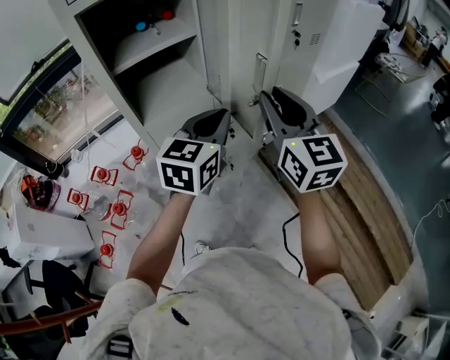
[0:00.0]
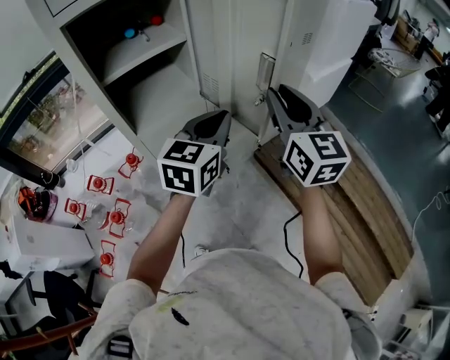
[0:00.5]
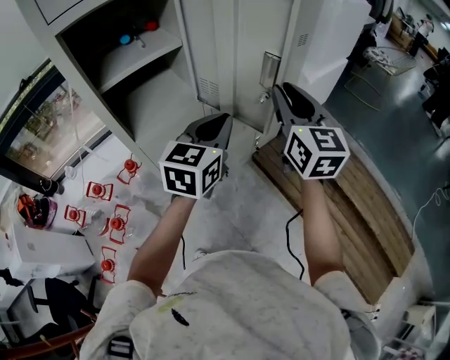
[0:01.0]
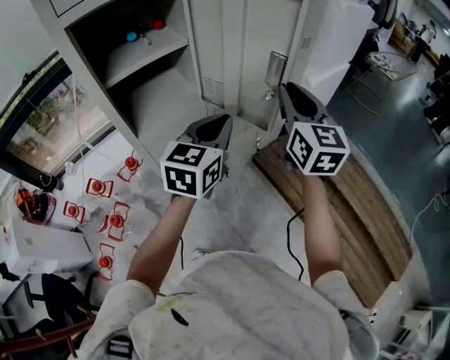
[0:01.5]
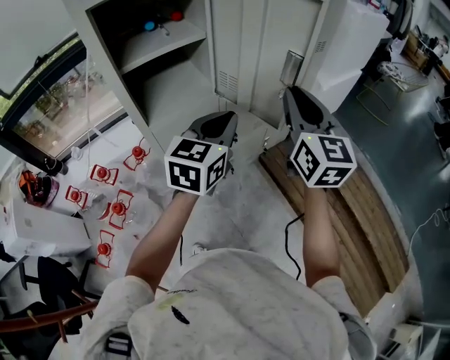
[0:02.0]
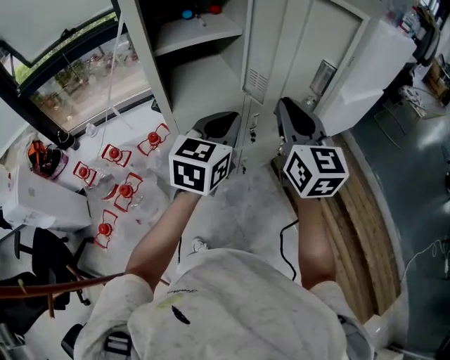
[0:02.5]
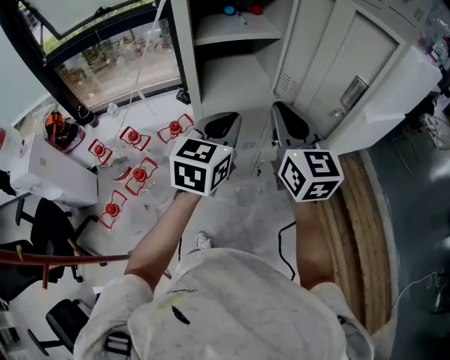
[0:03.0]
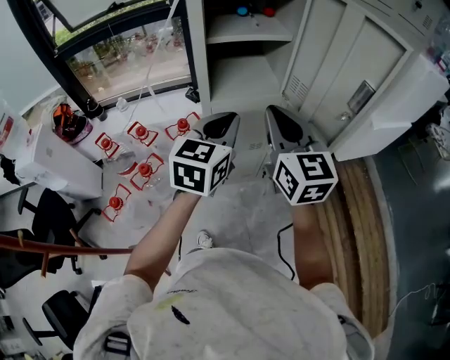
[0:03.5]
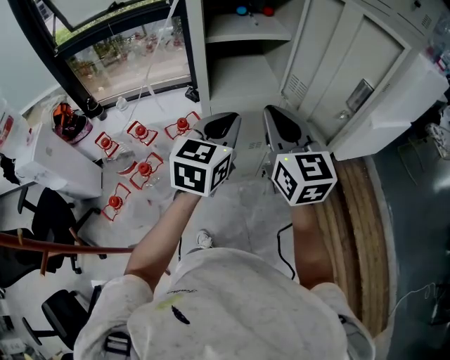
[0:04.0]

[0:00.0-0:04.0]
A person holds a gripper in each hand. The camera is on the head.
0:02.0 to 0:04.0: The two grippers go roughly 15 cm to the left. The left gripper changes its angle by some 20 degrees. The right gripper rotates roughly 30 degrees.

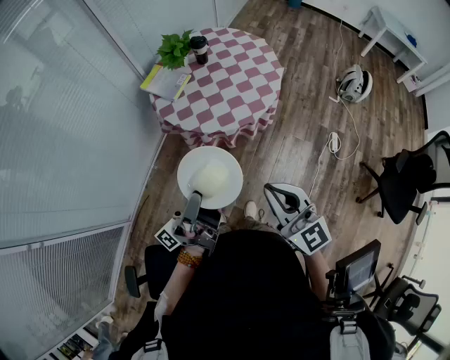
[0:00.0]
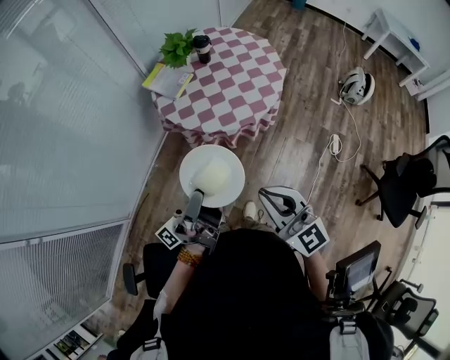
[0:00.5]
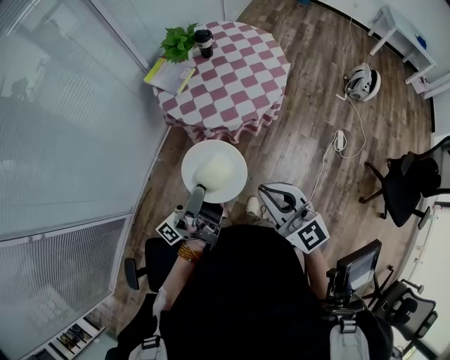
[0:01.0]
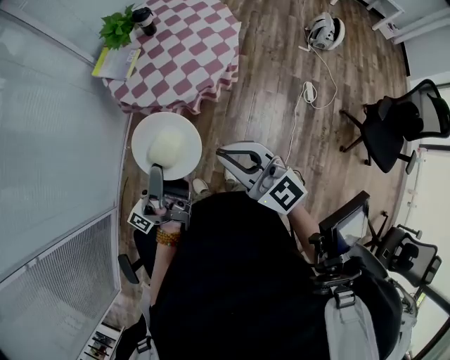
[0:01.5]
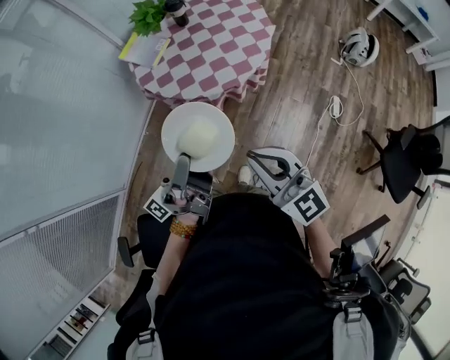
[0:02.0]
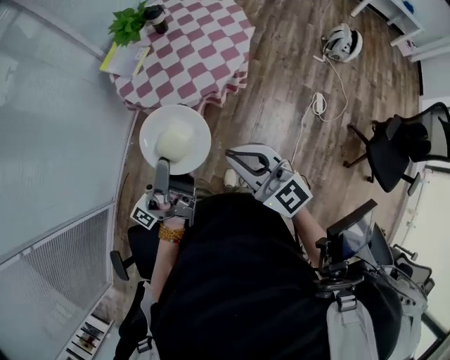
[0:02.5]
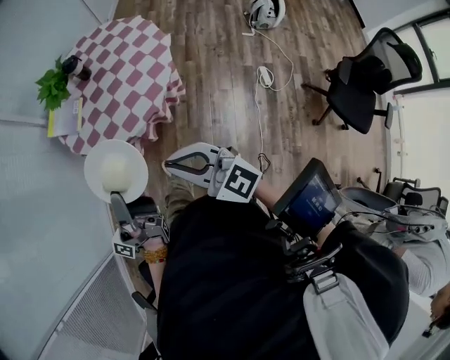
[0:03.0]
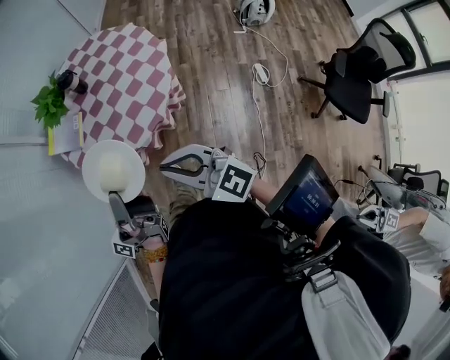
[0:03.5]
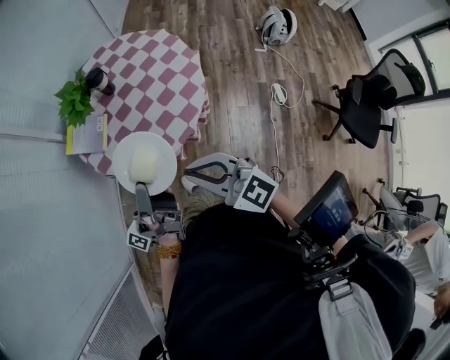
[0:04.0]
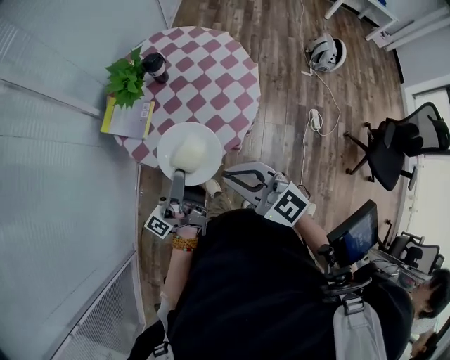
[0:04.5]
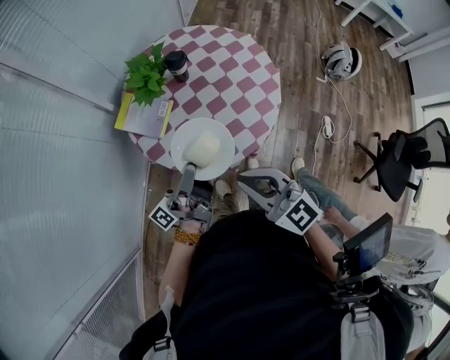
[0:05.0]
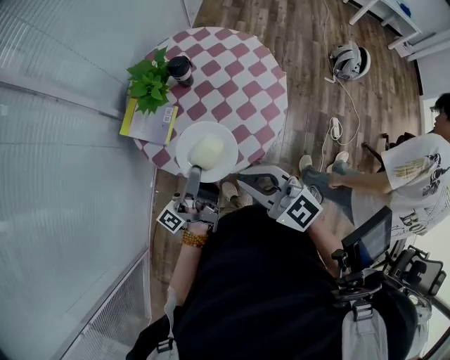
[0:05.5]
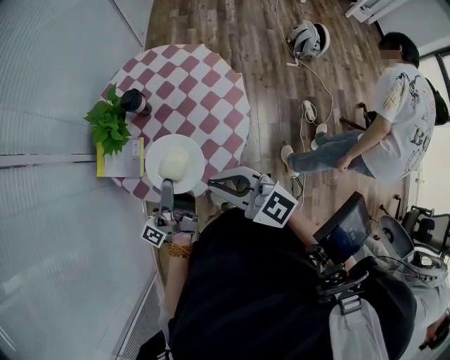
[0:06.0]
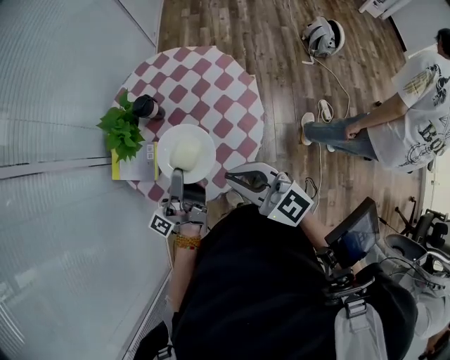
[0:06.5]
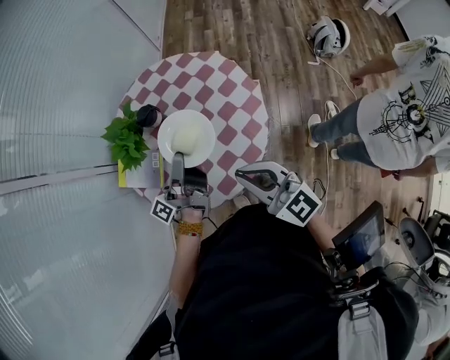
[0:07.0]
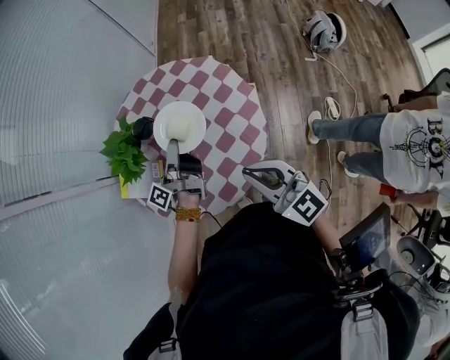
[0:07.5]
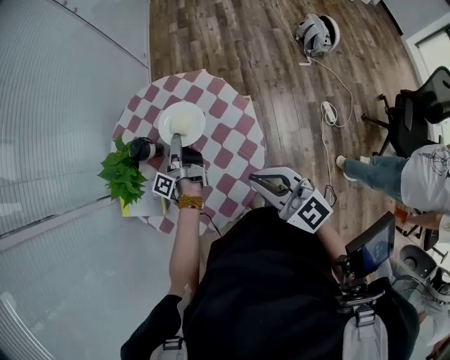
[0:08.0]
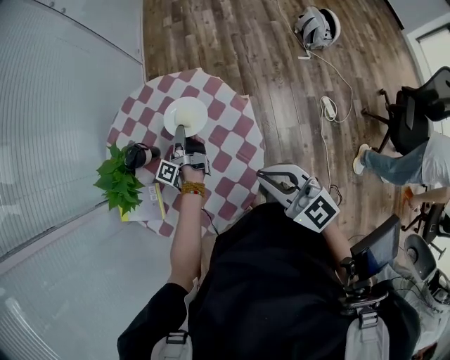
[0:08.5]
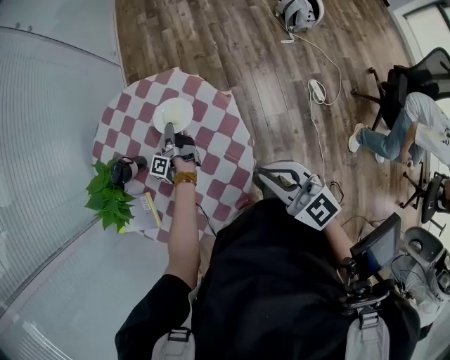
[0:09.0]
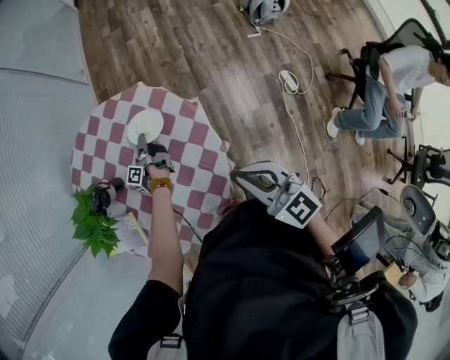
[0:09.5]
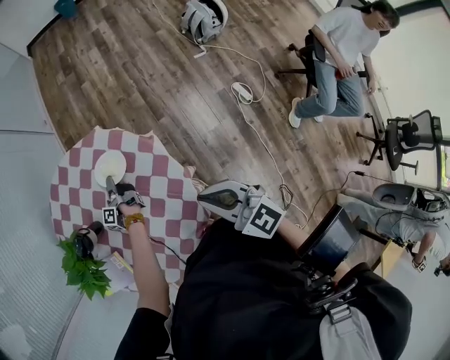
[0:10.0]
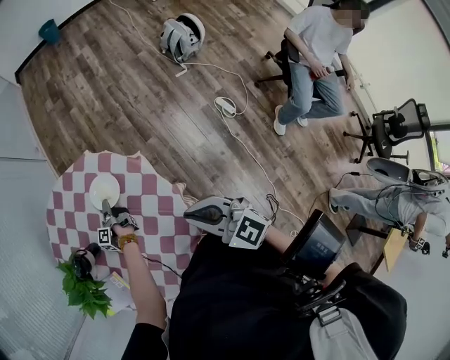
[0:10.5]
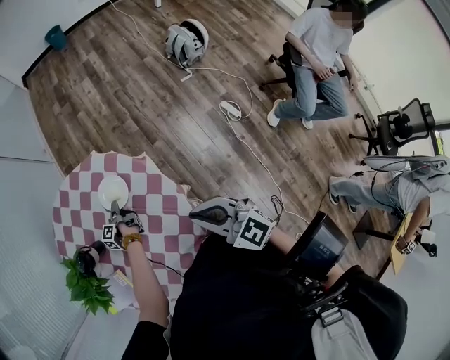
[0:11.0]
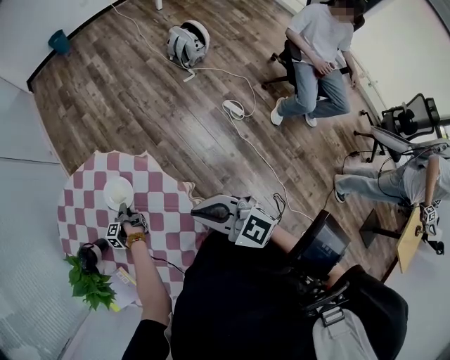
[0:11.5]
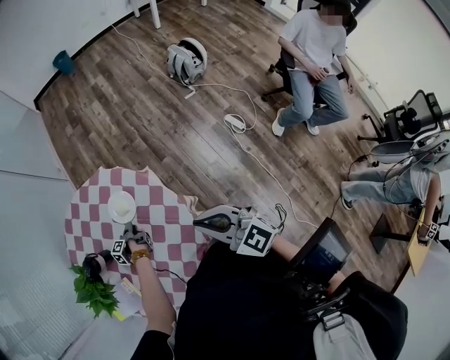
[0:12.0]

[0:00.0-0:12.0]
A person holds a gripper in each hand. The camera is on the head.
0:00.0 to 0:02.0: The right gripper changes place by some 5 cm.
0:02.0 to 0:04.0: The right gripper ends up about 20 cm from where it was.
0:04.0 to 0:06.0: The right gripper shifts by some 15 cm.
0:06.0 to 0:08.0: The right gripper changes place by approximately 20 cm.
0:08.0 to 0:10.0: The right gripper moves roughly 15 cm.
0:10.0 to 0:12.0: The right gripper changes place by approximately 10 cm.

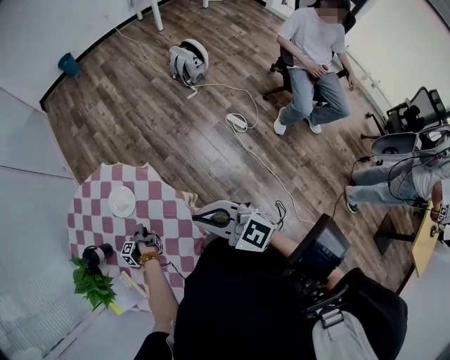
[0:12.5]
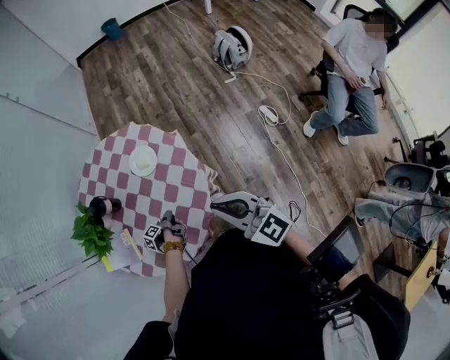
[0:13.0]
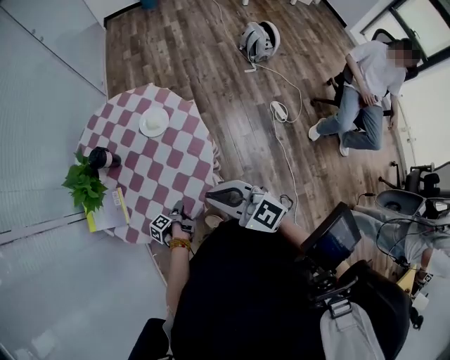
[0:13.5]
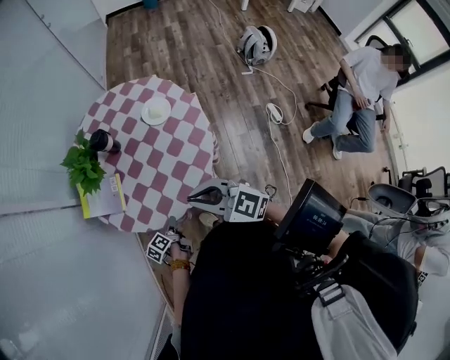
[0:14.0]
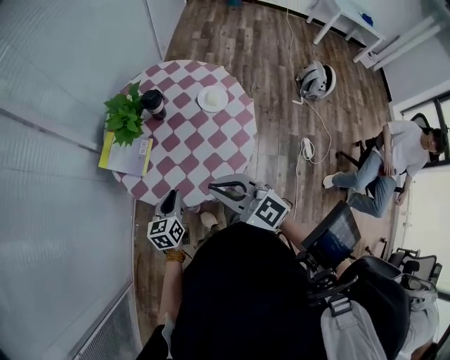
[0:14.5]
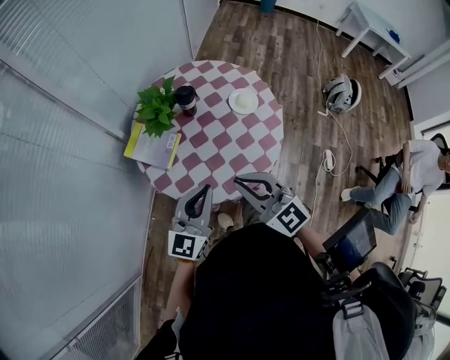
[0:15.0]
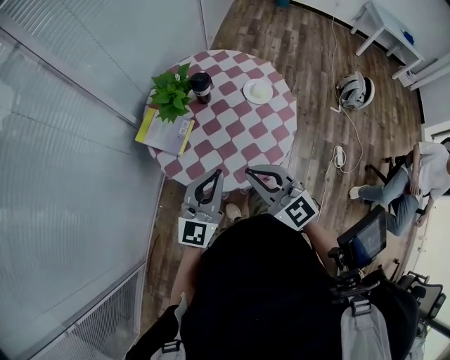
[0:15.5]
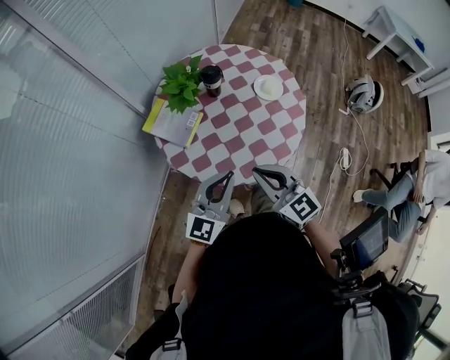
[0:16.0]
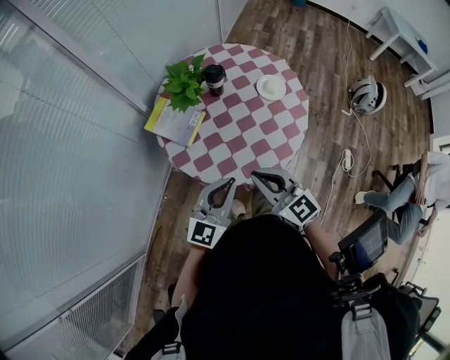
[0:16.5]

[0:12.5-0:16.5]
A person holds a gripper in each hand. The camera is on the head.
0:12.5 to 0:14.5: The right gripper moves approximately 30 cm, and rotates roughly 40 degrees.

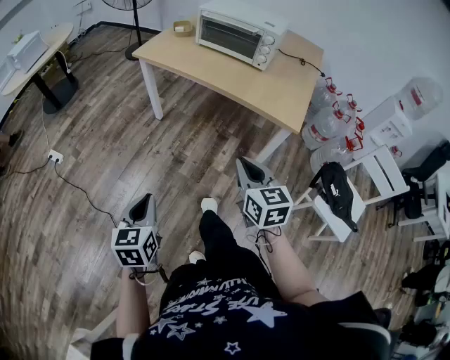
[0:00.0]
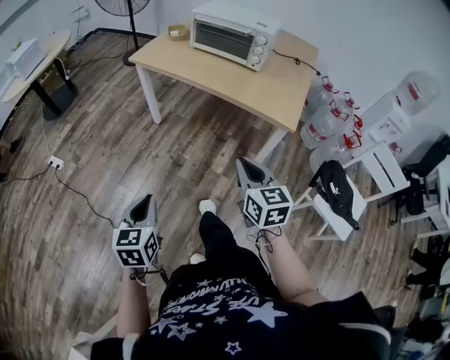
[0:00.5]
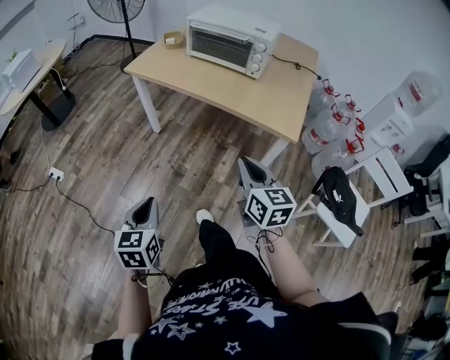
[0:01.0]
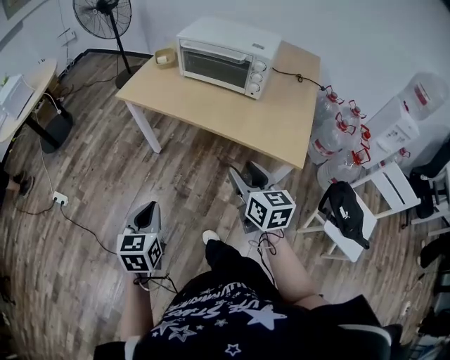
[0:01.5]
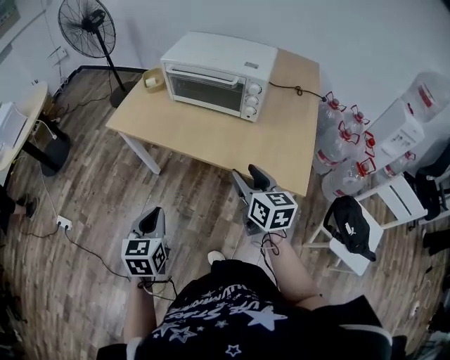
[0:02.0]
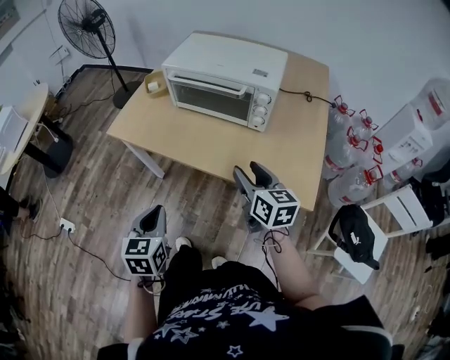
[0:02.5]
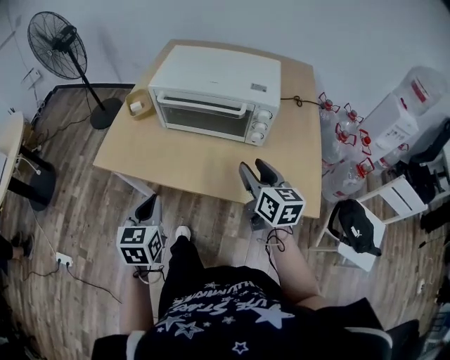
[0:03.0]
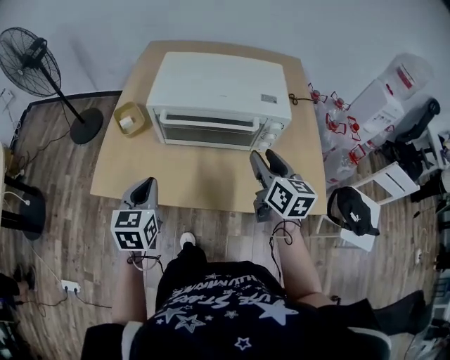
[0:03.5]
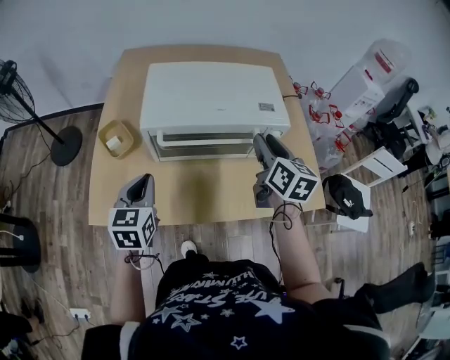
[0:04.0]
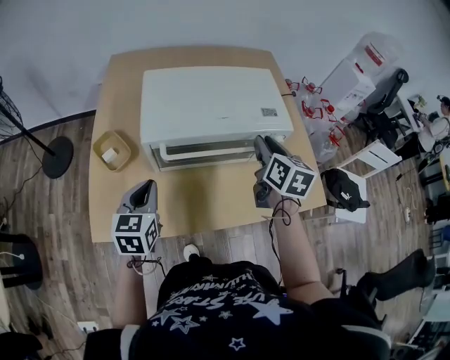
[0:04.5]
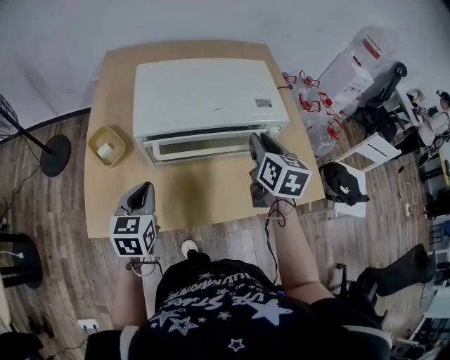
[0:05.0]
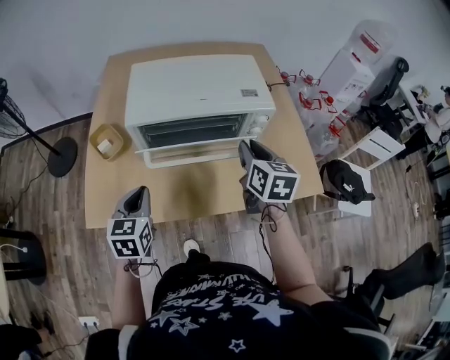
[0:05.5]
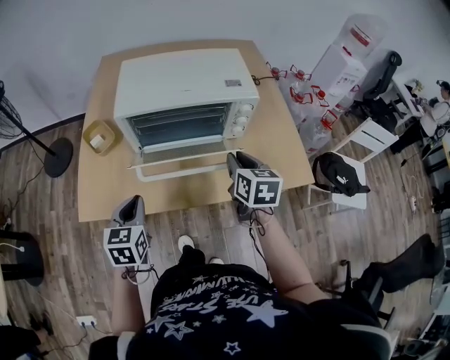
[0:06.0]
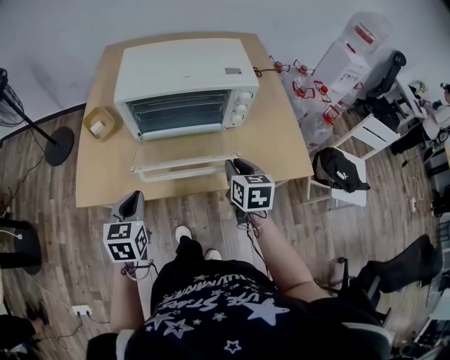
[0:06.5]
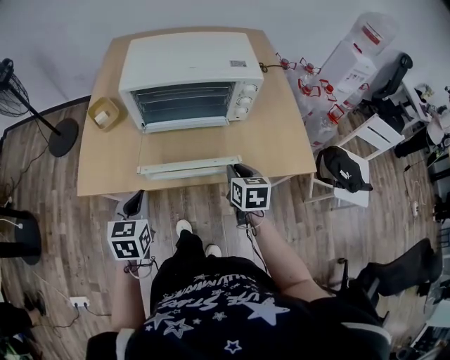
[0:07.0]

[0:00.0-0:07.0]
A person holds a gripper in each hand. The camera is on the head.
0:00.0 to 0:02.0: The grippers both shift forward by some 30 cm. The right gripper opens its fingers.
0:02.0 to 0:03.5: The left gripper goes about 35 cm forward, while the right gripper is displaced forward by some 25 cm, and turns by approximately 20 degrees.
0:03.5 to 0:05.0: The two grippers go roughly 10 cm forward. The right gripper rotates approximately 20 degrees, and closes its fingers.
0:05.0 to 0:07.0: The left gripper heads backward, covering some 15 cm; the right gripper moves backward and downward, some 25 cm.
